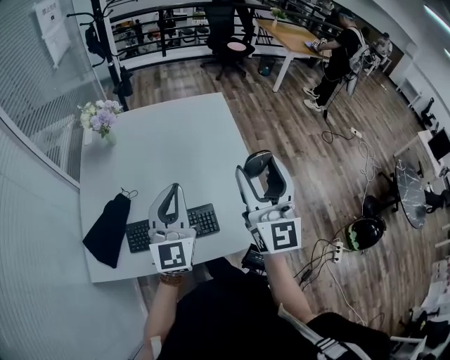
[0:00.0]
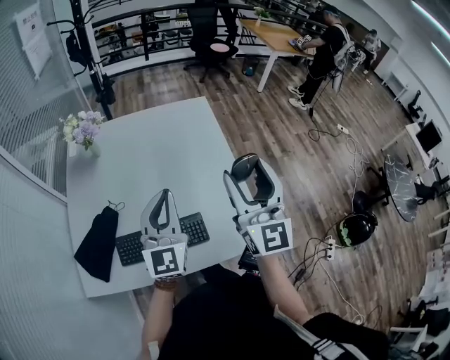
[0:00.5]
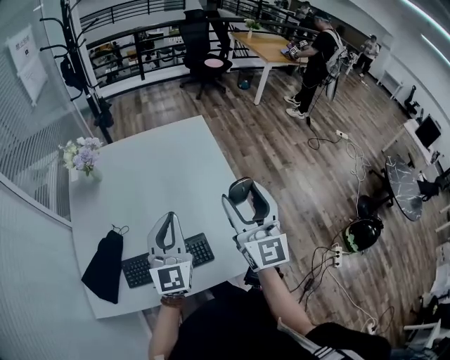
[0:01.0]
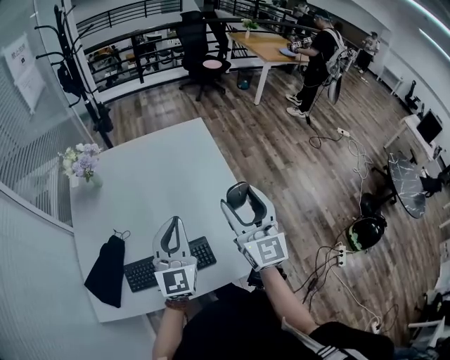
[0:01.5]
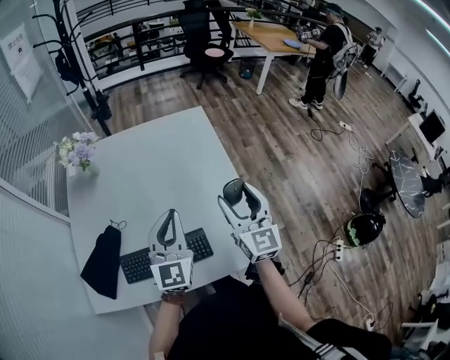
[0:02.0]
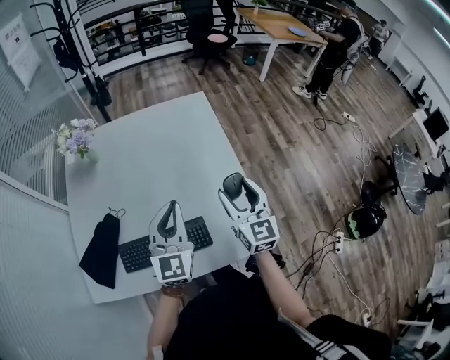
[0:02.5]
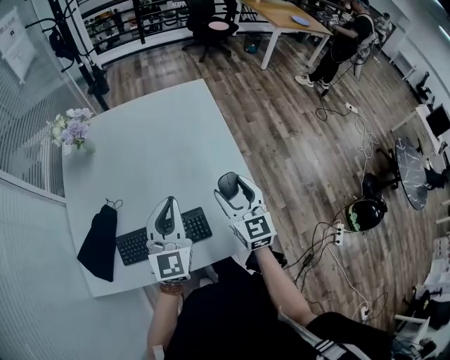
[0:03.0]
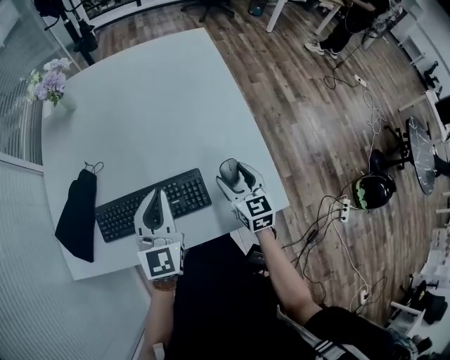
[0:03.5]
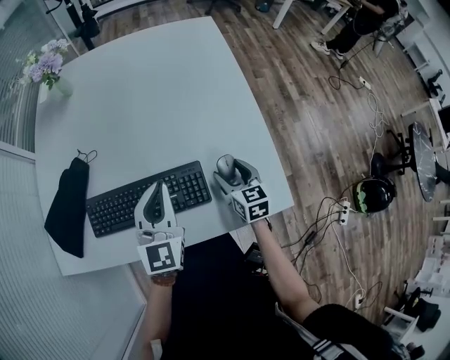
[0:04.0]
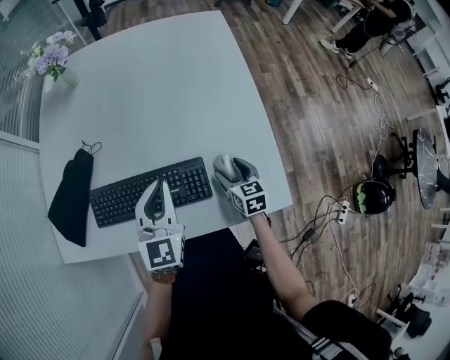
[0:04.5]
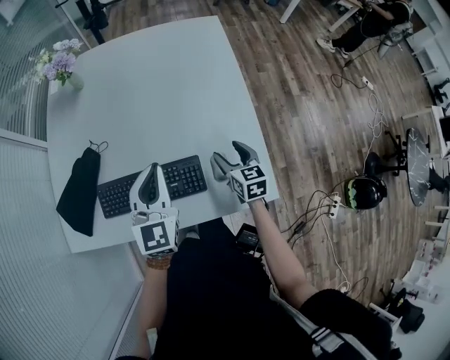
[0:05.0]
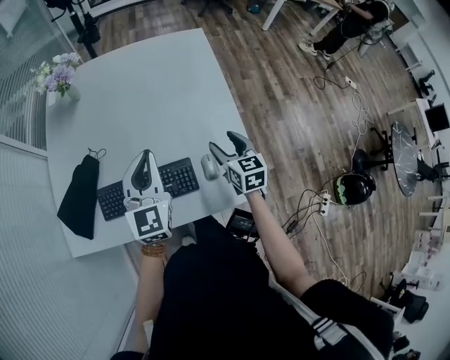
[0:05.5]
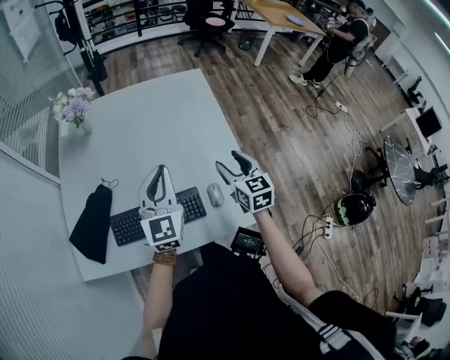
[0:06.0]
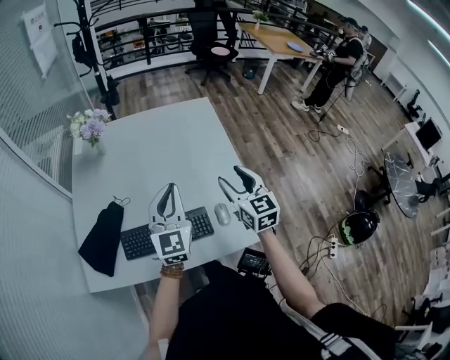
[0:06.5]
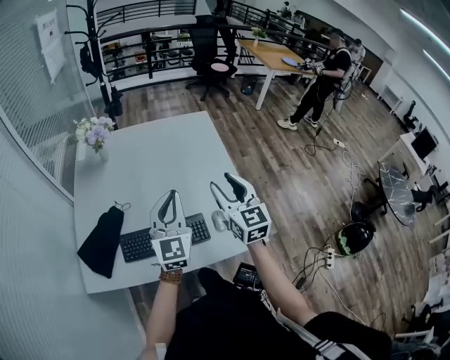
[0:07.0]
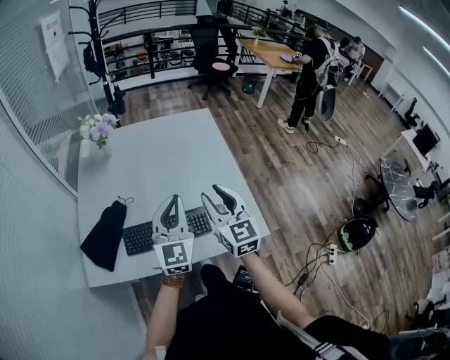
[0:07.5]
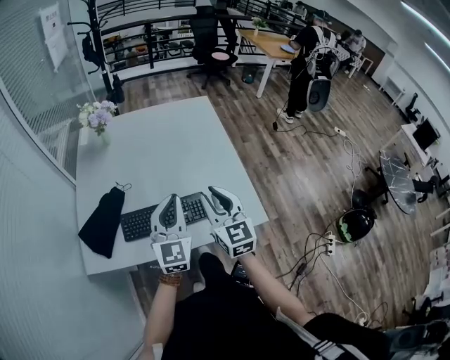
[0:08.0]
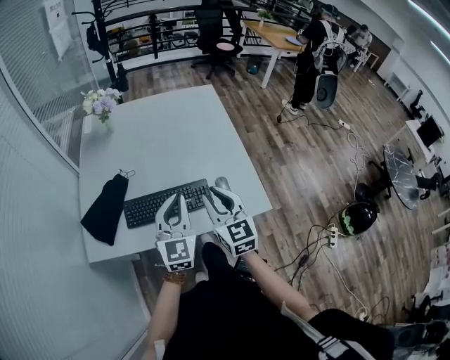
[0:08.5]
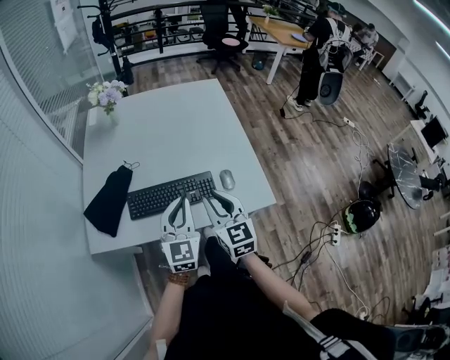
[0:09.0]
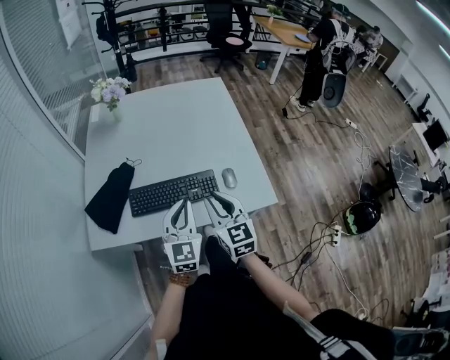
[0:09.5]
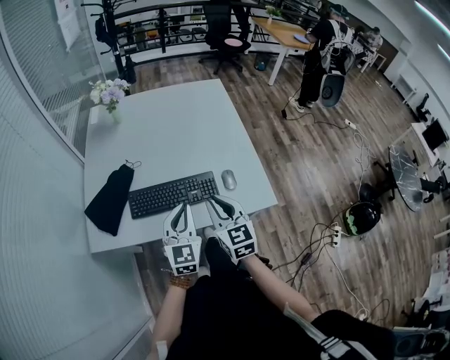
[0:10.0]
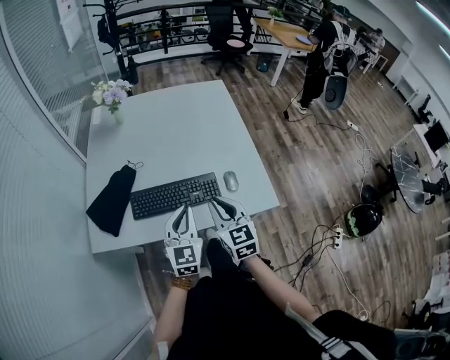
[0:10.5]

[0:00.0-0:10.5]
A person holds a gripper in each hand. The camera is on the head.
0:00.0 to 0:02.0: The right gripper moves downward and forward, some 15 cm. The left gripper is displaced forward by roughly 5 cm.
0:02.0 to 0:04.0: The right gripper is displaced downward by approximately 40 cm, and tilts its fingers roughly 30 degrees downward; the left gripper shifts approximately 20 cm downward.
0:04.0 to 0:06.5: The left gripper shifts about 20 cm upward. Meanwhile the right gripper travels upward by some 35 cm, and rotates some 20 degrees.
0:06.5 to 0:08.5: The left gripper moves backward, approximately 15 cm. The right gripper is displaced backward and to the left by about 20 cm, and closes its fingers.
0:08.5 to 0:10.5: Both grippers travel together downward, about 5 cm.

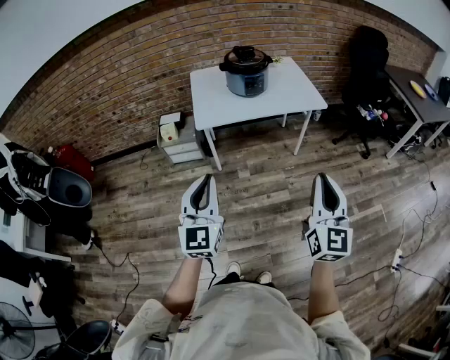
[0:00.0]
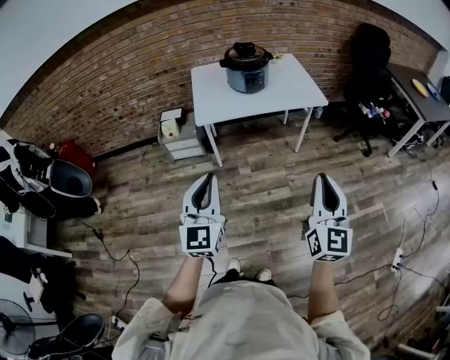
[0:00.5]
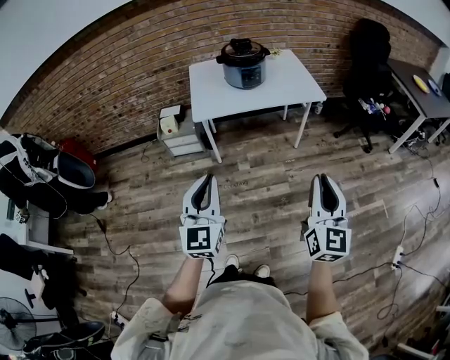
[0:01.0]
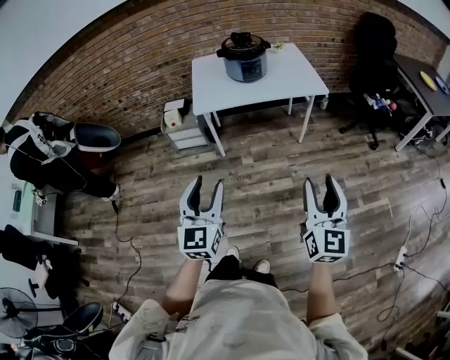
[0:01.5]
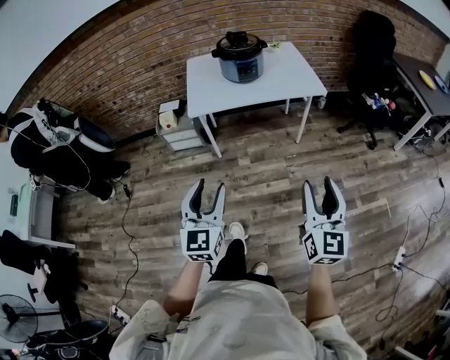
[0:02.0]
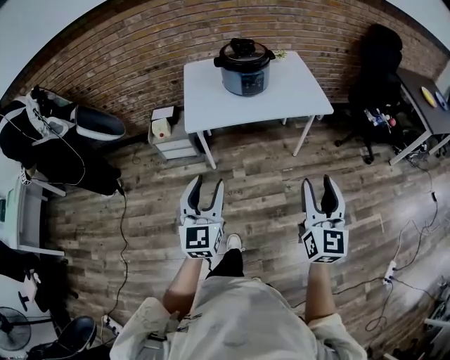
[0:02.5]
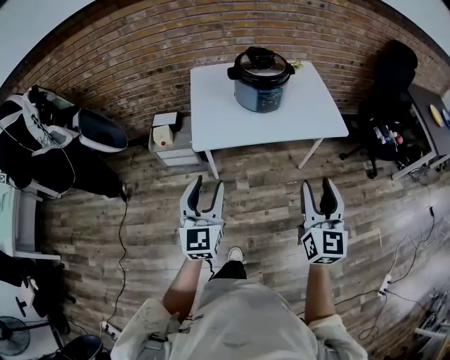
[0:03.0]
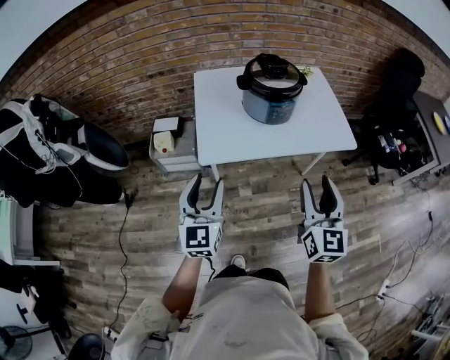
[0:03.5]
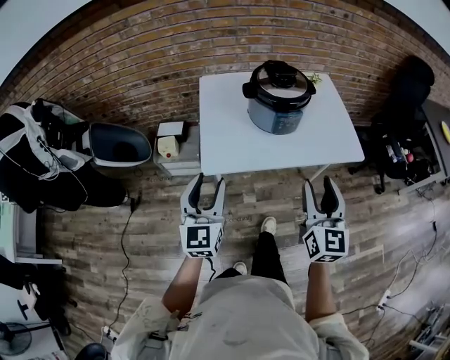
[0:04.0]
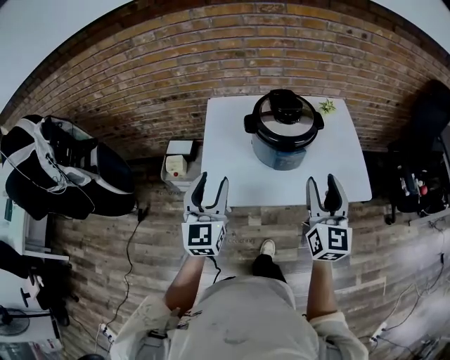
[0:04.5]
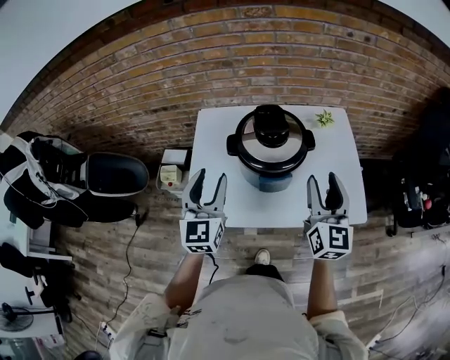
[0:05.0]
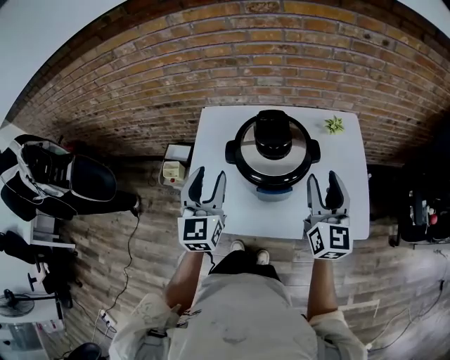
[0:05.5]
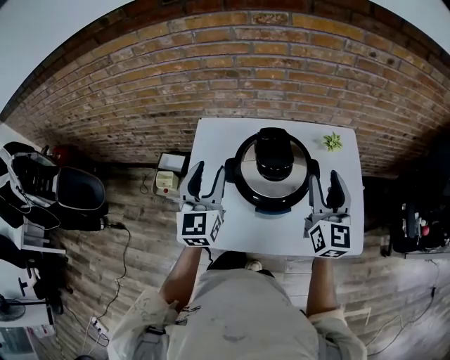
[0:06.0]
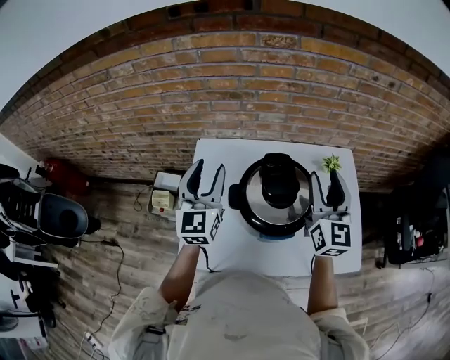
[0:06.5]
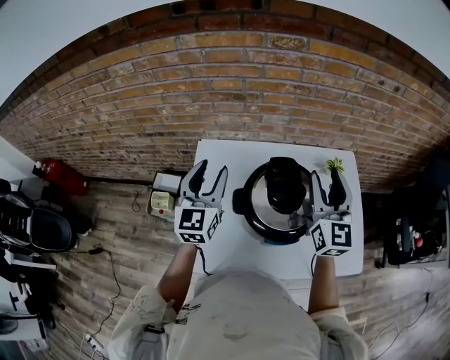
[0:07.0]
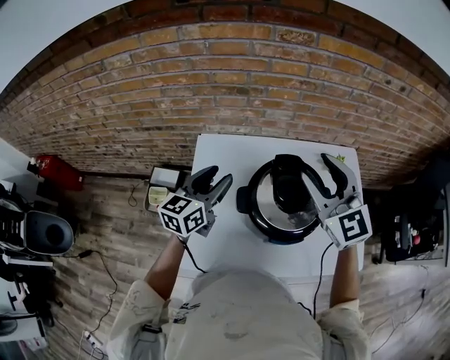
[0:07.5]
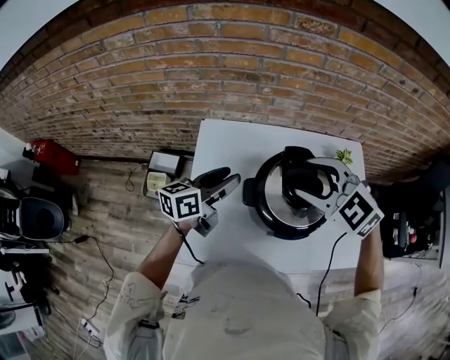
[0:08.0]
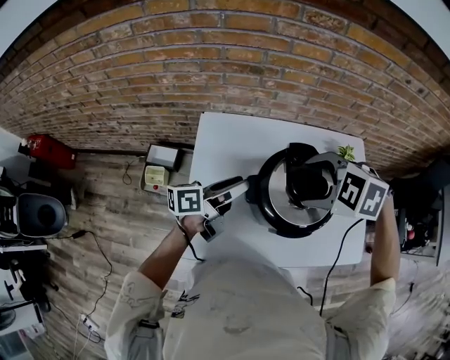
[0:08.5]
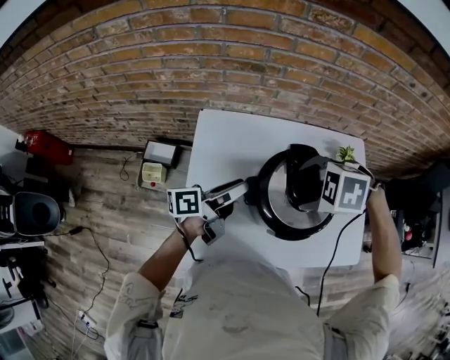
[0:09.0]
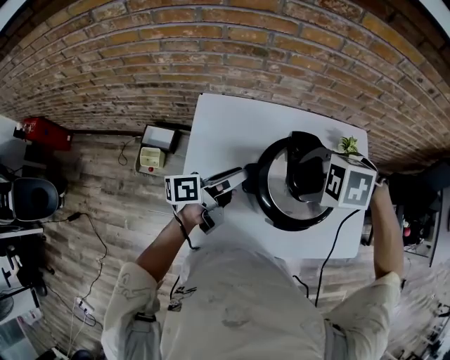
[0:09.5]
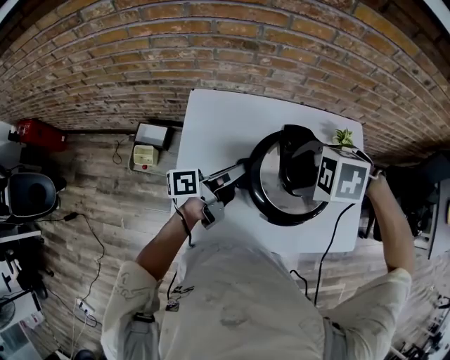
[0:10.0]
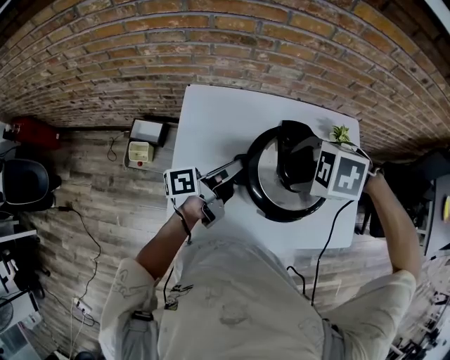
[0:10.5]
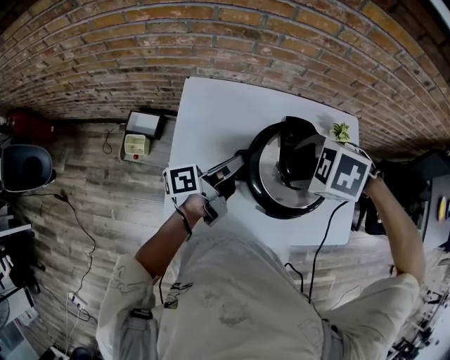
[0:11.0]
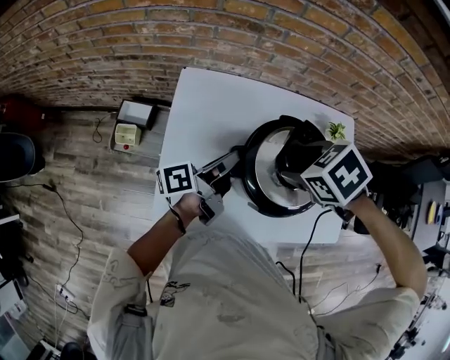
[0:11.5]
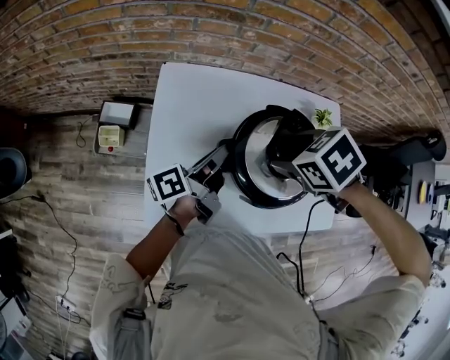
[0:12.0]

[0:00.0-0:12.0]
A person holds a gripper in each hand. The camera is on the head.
0:00.0 to 0:02.0: The right gripper moves downward and to the right, approximately 10 cm, and opens its fingers; the left gripper travels to the right and downward by approximately 10 cm, and opens up.
0:02.0 to 0:04.0: The two grippers go some 35 cm forward.
0:04.0 to 0:06.0: Both grippers travel together forward, some 35 cm.
0:06.0 to 0:08.0: The right gripper moves to the left, approximately 15 cm, and tilts its fingers roughly 40 degrees downward. The left gripper travels downward and forward by some 10 cm, and turns by some 60 degrees.
0:08.0 to 0:10.0: The left gripper changes place by some 5 cm, turns by about 40 degrees, and closes its fingers. Meanwhile the right gripper moves downward, some 10 cm, and angles its fingers downward, by some 40 degrees.
0:10.0 to 0:12.0: The right gripper twists about 40 degrees clockwise, seen from behind.

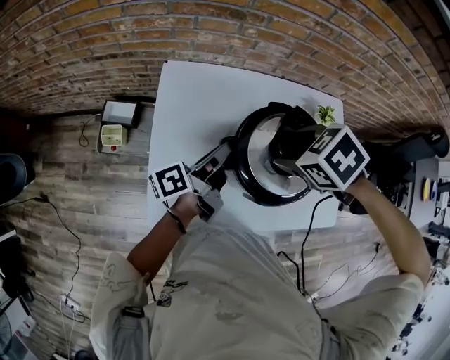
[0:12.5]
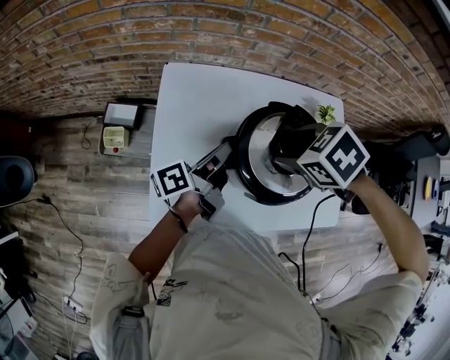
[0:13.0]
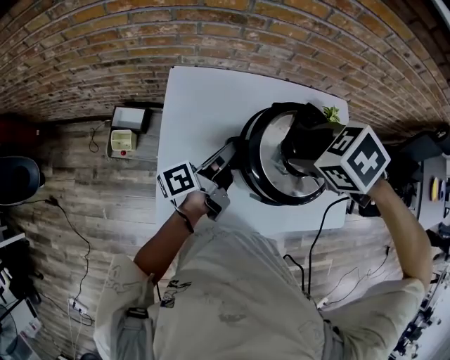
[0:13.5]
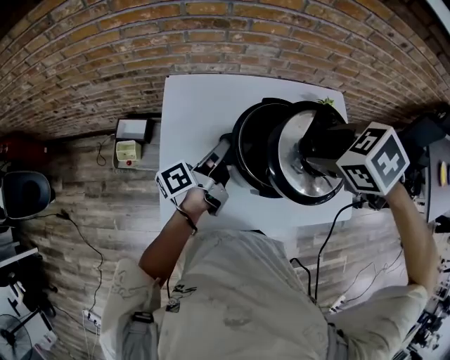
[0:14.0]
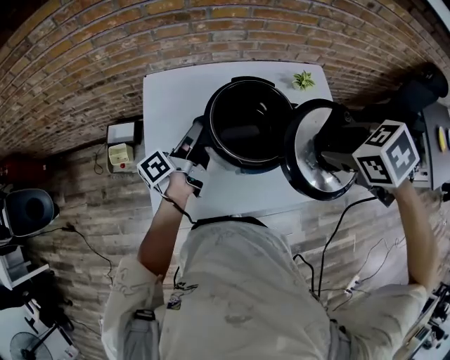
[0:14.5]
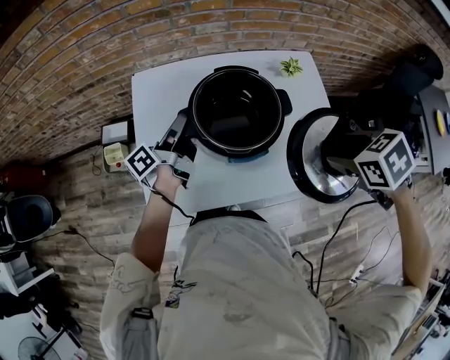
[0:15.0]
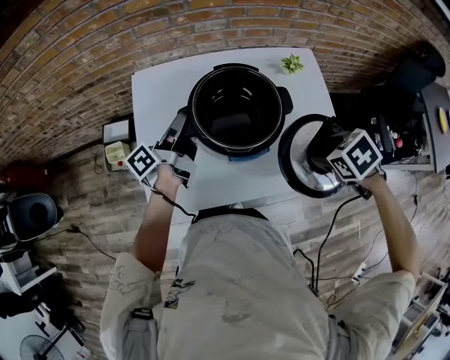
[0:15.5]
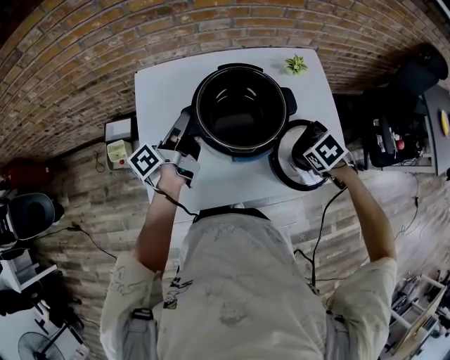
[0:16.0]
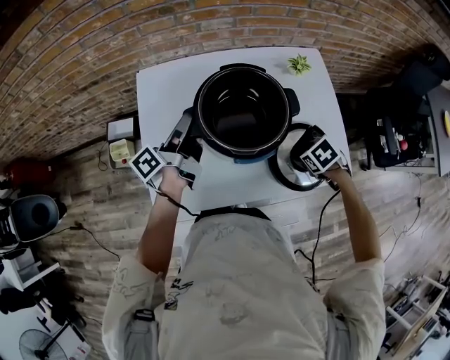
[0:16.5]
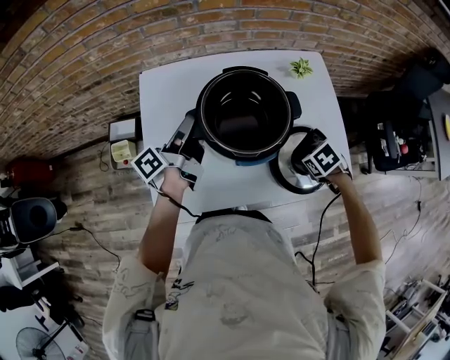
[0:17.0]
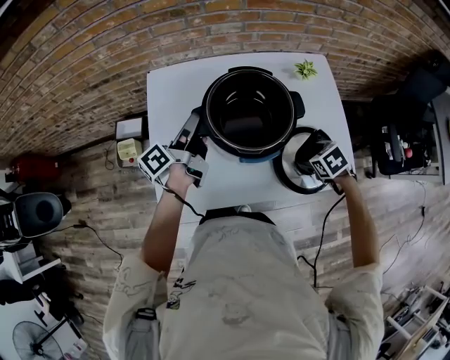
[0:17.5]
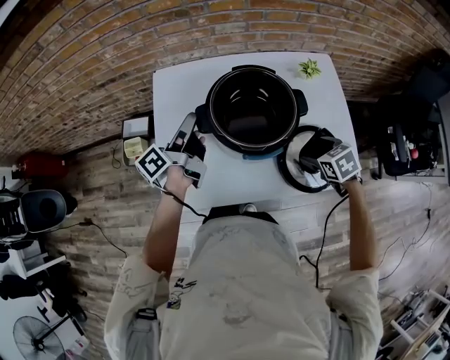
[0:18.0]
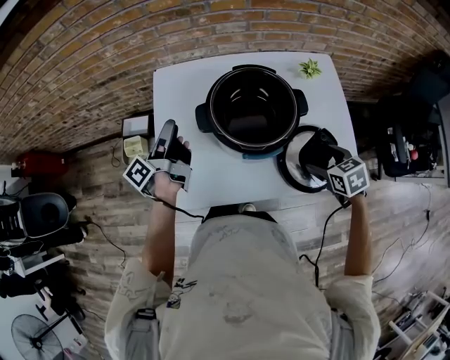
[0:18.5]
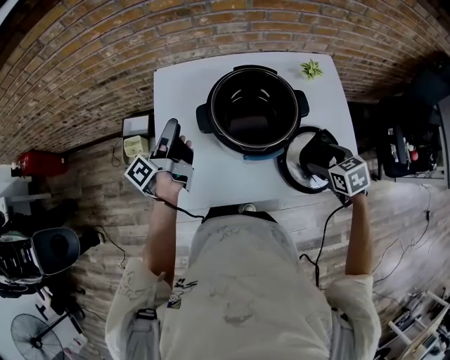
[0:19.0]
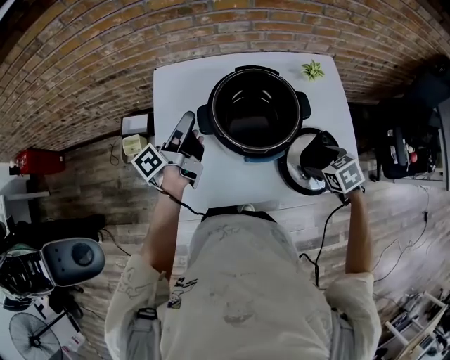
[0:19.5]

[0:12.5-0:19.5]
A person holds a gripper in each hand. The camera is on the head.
0:12.5 to 0:14.5: The right gripper changes place by about 20 cm.
0:14.5 to 0:16.0: The right gripper shifts some 20 cm downward.
0:16.0 to 0:17.5: The grippers make only small movements.
0:17.5 to 0:19.5: The left gripper reaches roughly 10 cm to the left, then returns.
